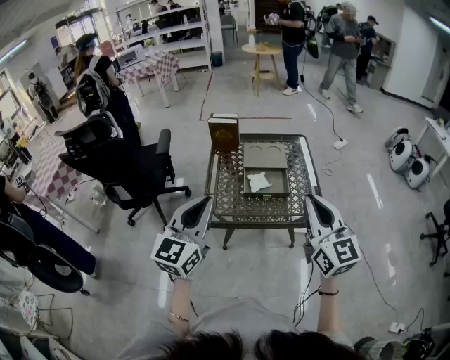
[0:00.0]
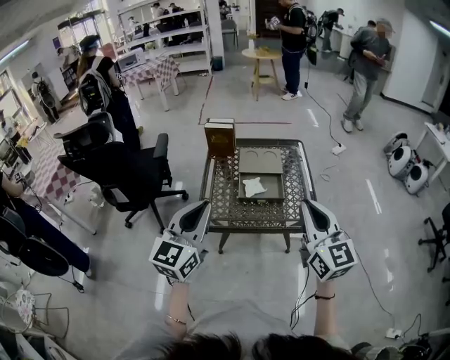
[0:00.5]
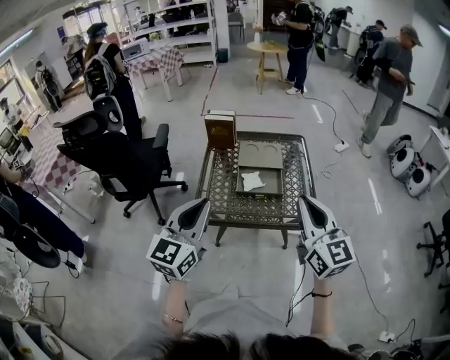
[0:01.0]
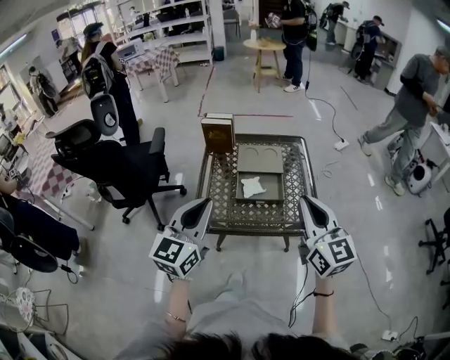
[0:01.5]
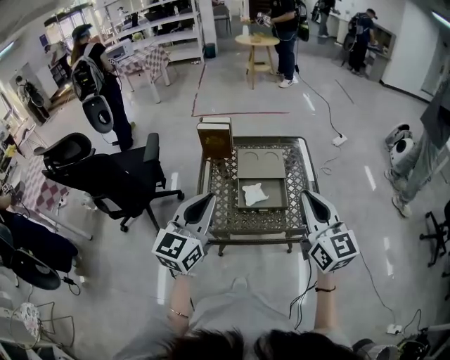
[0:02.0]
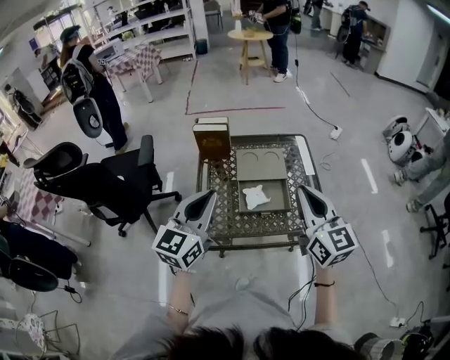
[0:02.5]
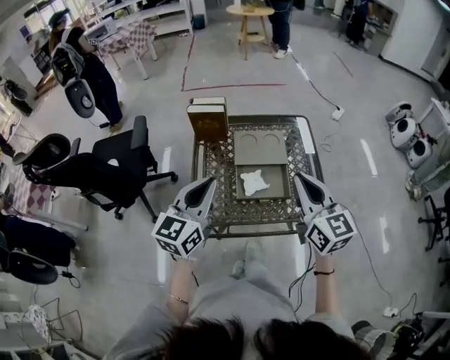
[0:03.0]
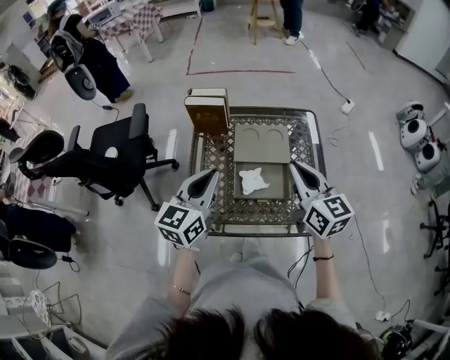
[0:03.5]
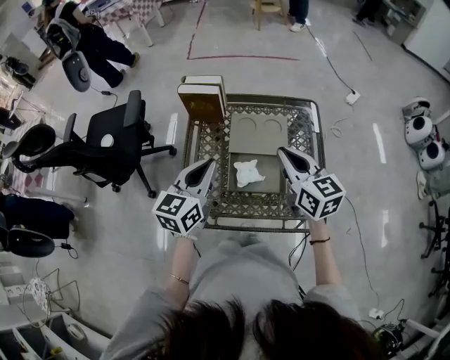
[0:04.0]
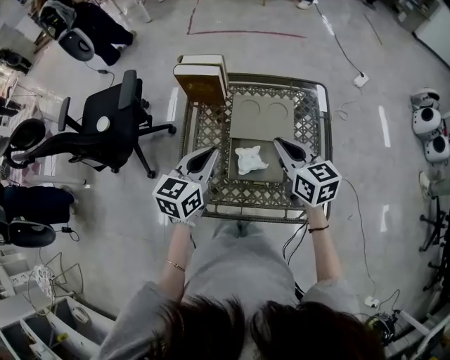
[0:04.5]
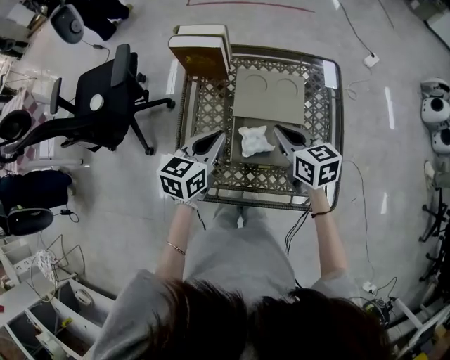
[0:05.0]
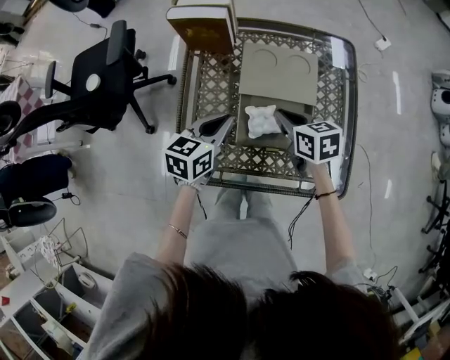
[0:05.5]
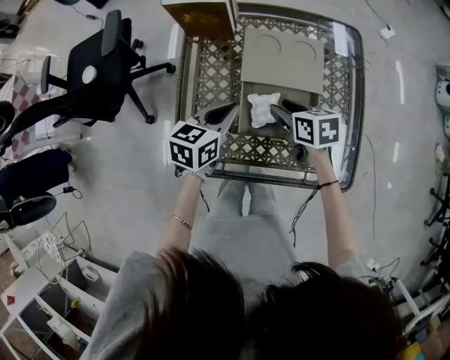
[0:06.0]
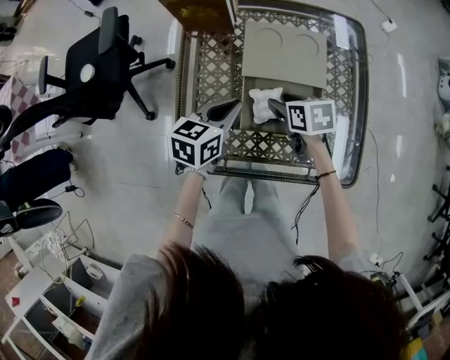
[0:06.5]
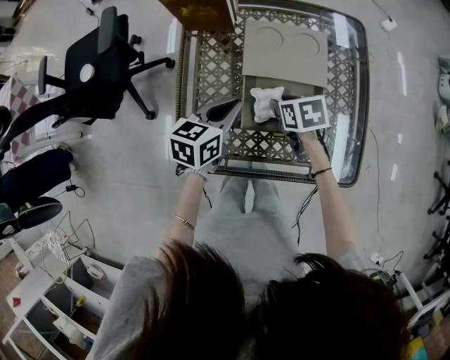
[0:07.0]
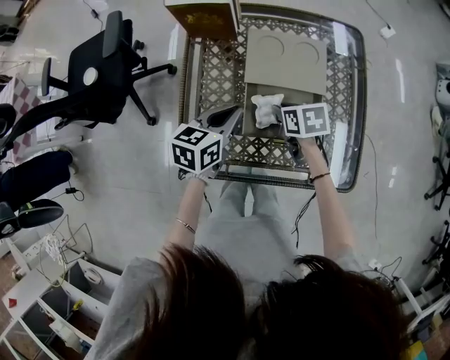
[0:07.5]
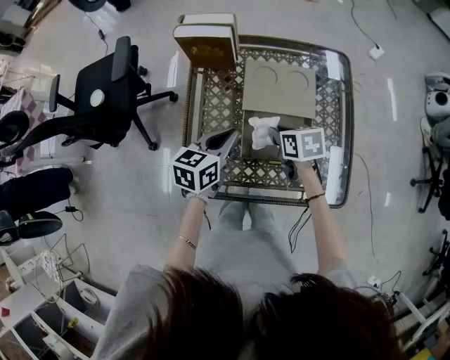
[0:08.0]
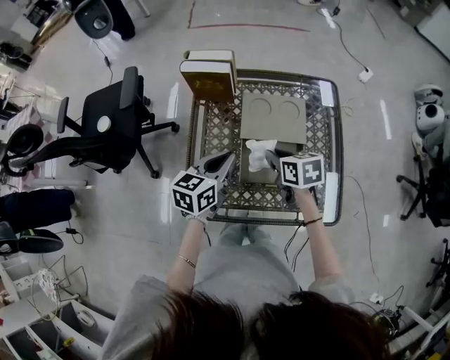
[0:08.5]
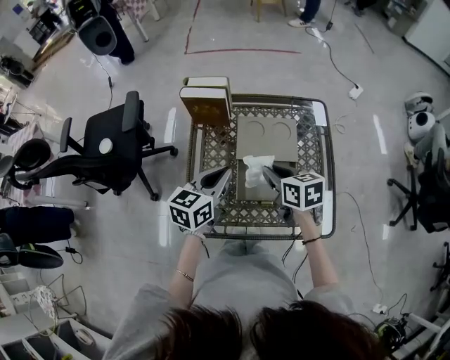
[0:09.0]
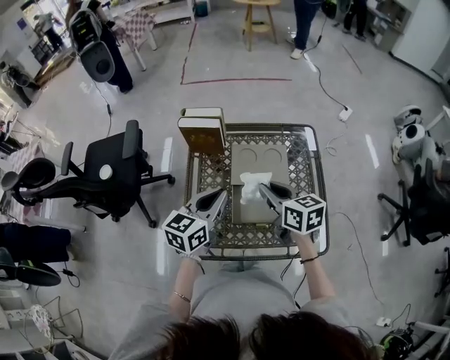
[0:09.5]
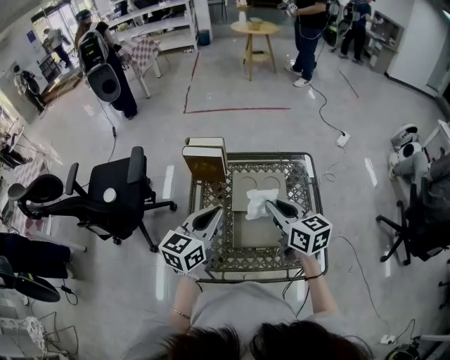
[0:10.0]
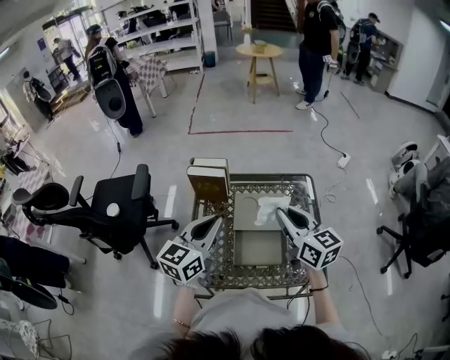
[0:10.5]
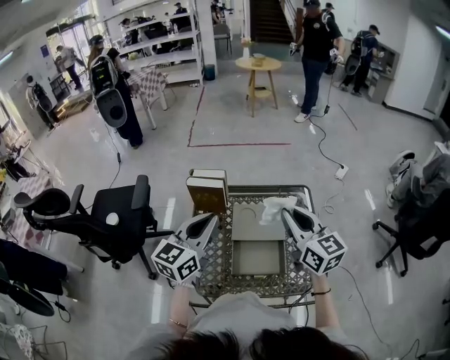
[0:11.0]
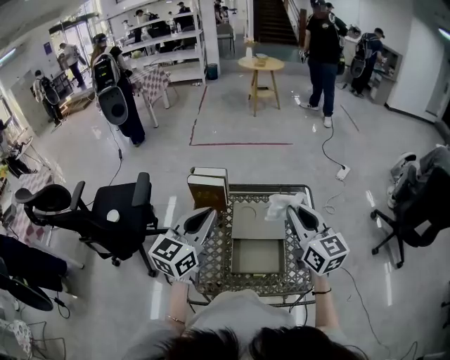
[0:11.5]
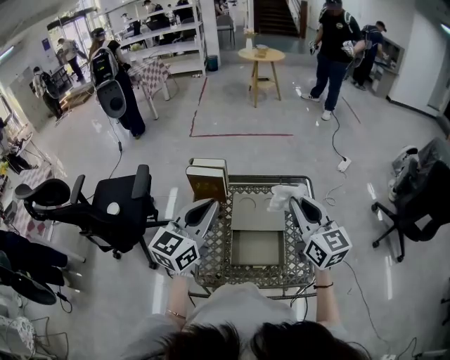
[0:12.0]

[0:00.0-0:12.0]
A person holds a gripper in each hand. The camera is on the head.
0:00.0 to 0:02.0: The grippers both shift forward by some 10 cm.
0:02.0 to 0:04.0: Both grippers travel together forward and downward, roughly 20 cm. The right gripper changes its angle by about 20 degrees.
0:04.0 to 0:06.0: The grippers both shift downward by about 20 cm. The right gripper tilts its fingers about 30 degrees downward, and opens up, while the left gripper rotates approximately 20 degrees.
0:06.0 to 0:08.0: The right gripper closes.
0:08.0 to 0:10.0: Both grippers move upward, about 20 cm. The left gripper turns by approximately 20 degrees; the right gripper points its fingers approximately 30 degrees further upward.
0:10.0 to 0:12.0: The right gripper heads upward and to the right, covering roughly 15 cm, and swivels some 30 degrees. The left gripper heads upward, covering roughly 10 cm.

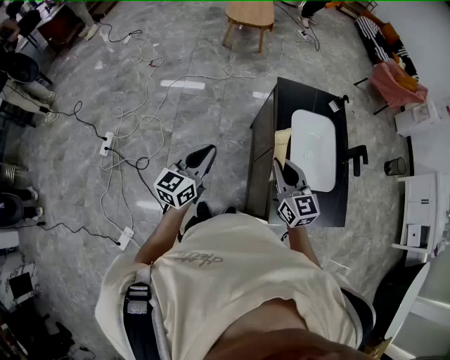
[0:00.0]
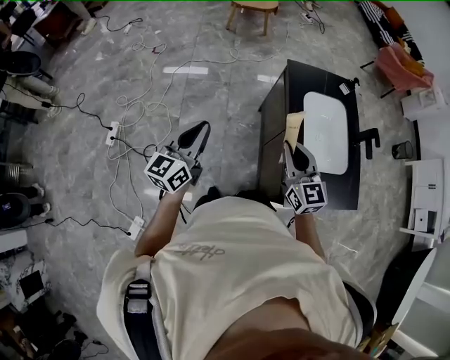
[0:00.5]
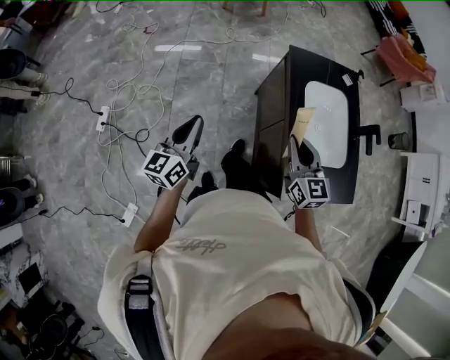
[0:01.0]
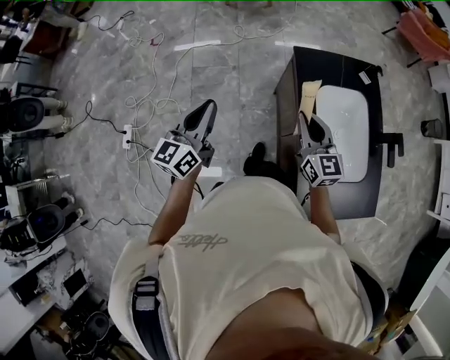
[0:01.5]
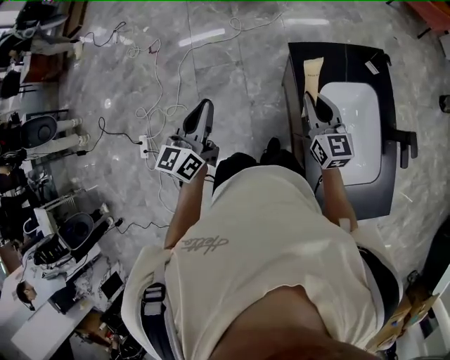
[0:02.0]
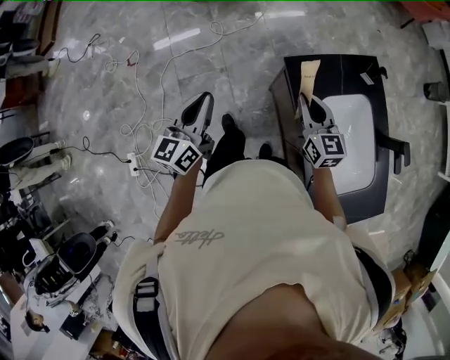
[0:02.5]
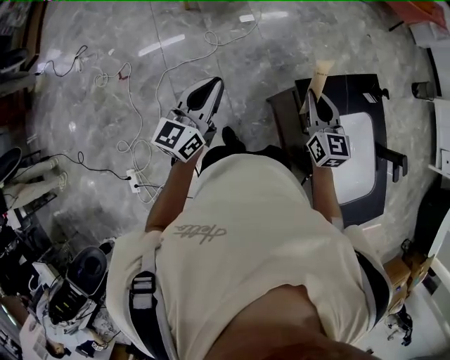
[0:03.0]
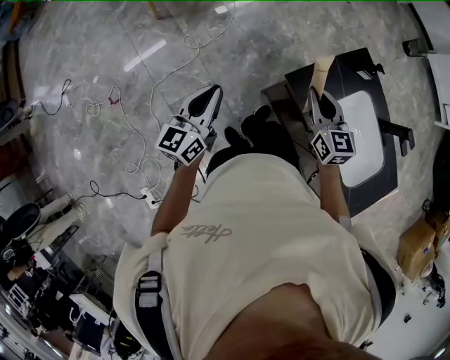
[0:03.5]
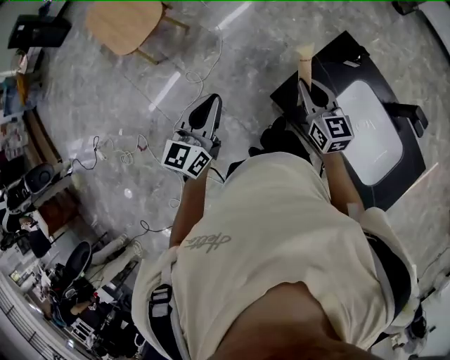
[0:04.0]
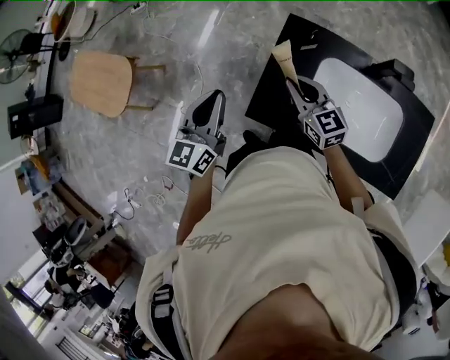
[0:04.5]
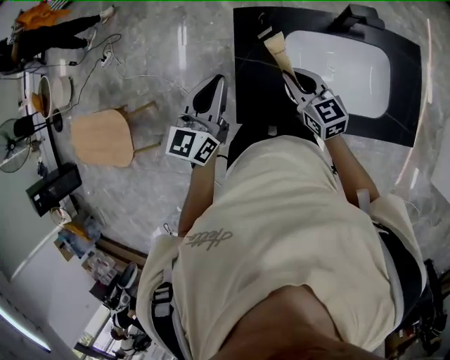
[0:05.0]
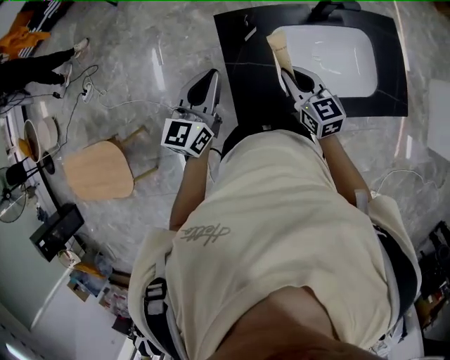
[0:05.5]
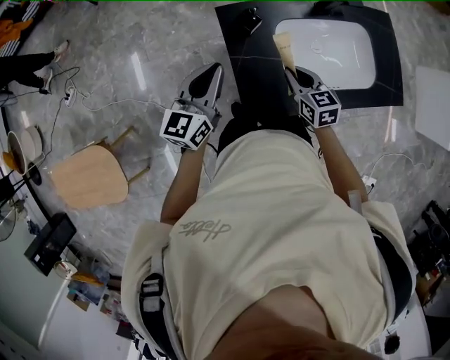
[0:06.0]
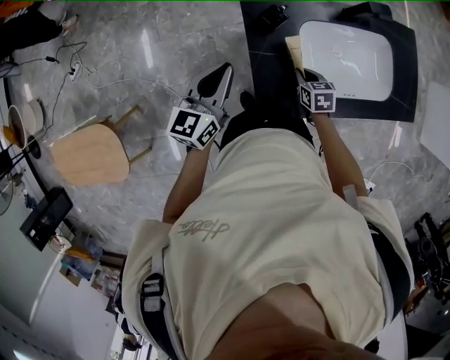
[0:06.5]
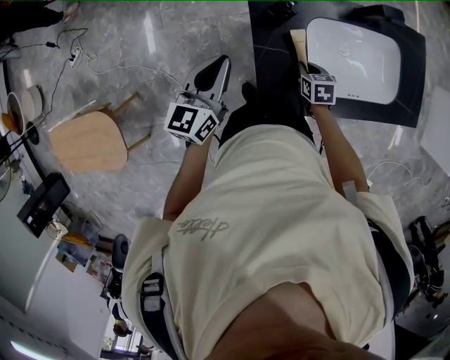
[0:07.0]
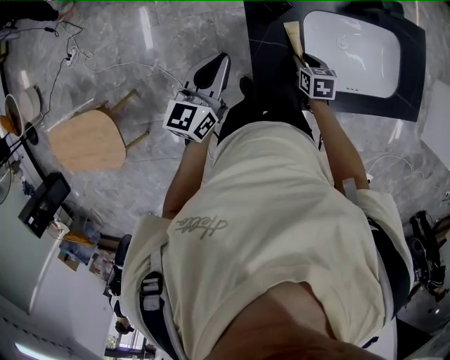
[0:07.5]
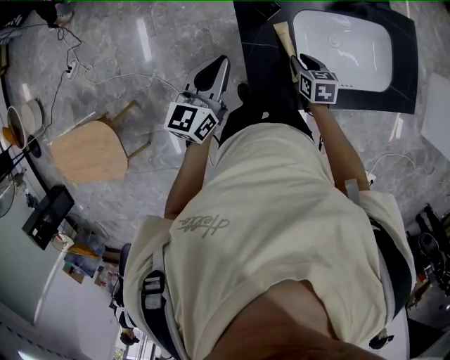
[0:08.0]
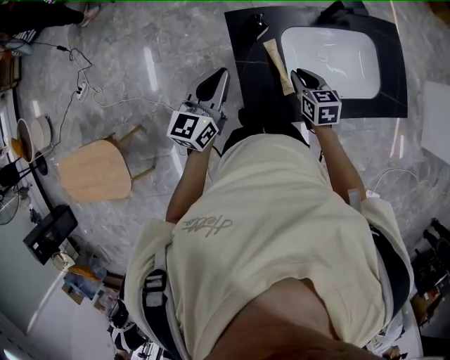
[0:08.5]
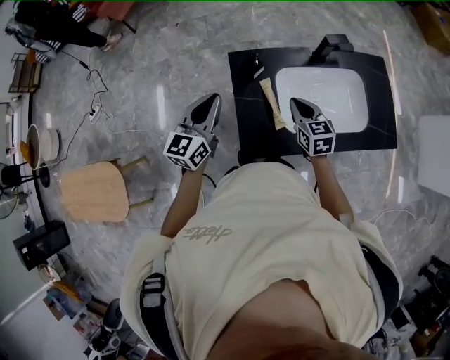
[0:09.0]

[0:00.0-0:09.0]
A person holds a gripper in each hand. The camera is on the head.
0:00.0 to 0:02.0: Both grippers move forward, about 35 cm.
0:02.0 to 0:04.5: The right gripper ends up some 30 cm from where it was, and changes its angle by about 40 degrees. Meanwhile the left gripper changes place by roughly 50 cm, and swivels some 60 degrees.
0:04.5 to 0:07.0: The right gripper goes approximately 25 cm downward, and angles its fingers downward, by about 40 degrees, while the left gripper shifts by some 20 cm, and rotates roughly 30 degrees.
0:07.0 to 0:09.0: The right gripper moves upward, approximately 20 cm, changes its angle by roughly 30 degrees, and opens, then closes once more, while the left gripper shifts about 10 cm upward and to the right.

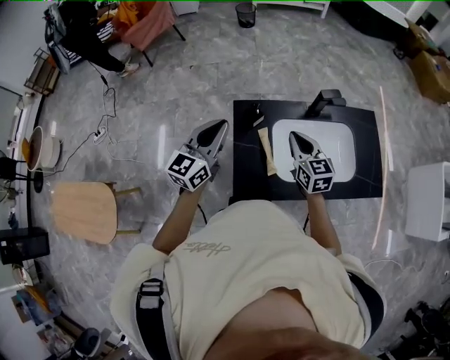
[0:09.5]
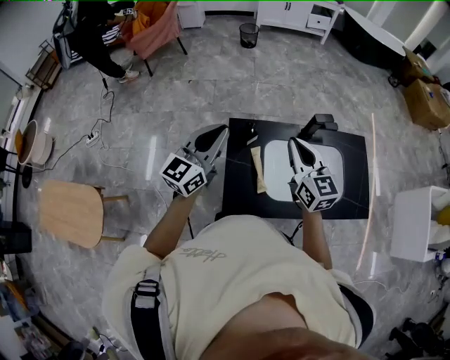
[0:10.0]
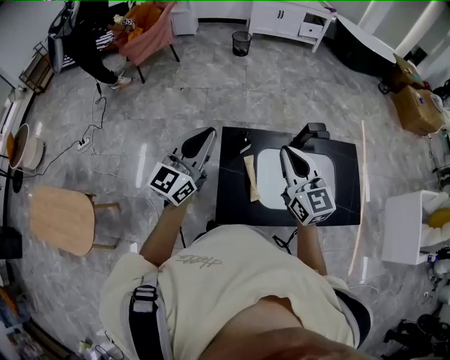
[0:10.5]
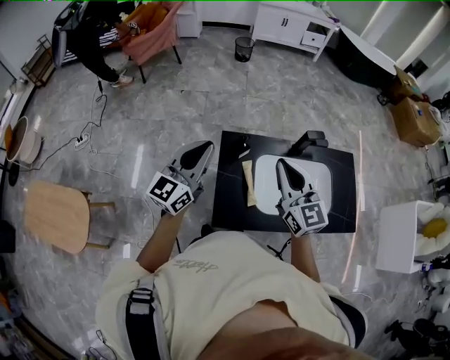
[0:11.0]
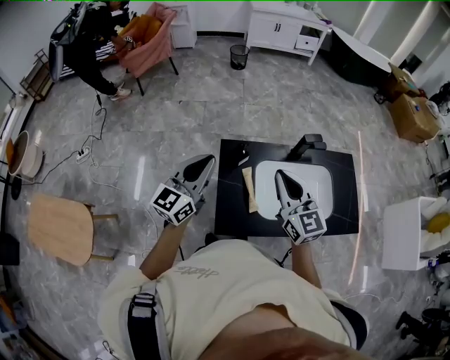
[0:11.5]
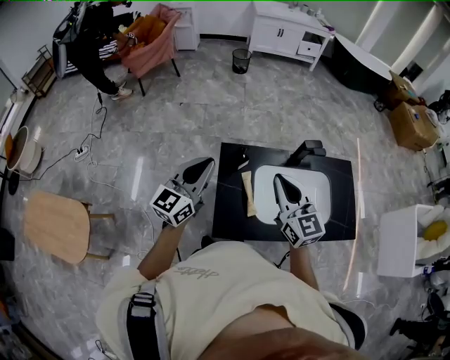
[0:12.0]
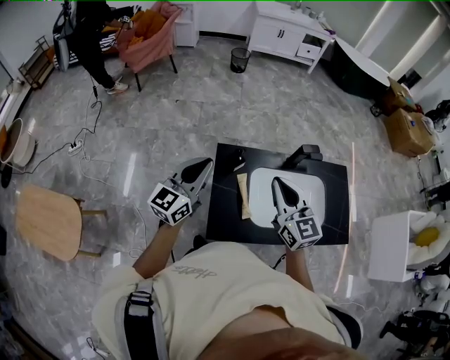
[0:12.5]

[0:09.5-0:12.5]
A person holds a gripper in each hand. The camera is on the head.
0:09.5 to 0:11.0: The left gripper moves upward, roughly 5 cm, while the right gripper moves upward, some 15 cm, and turns by roughly 20 degrees.
0:11.0 to 0:12.5: The grippers stay close to where they were, moving slightly.

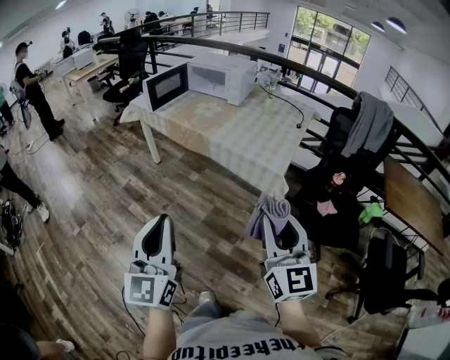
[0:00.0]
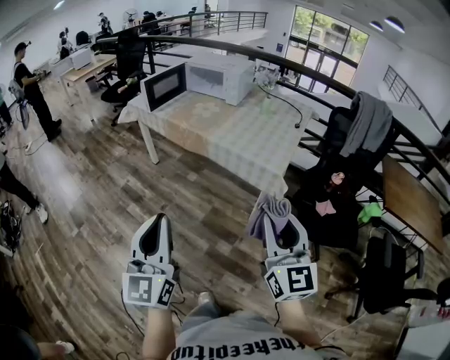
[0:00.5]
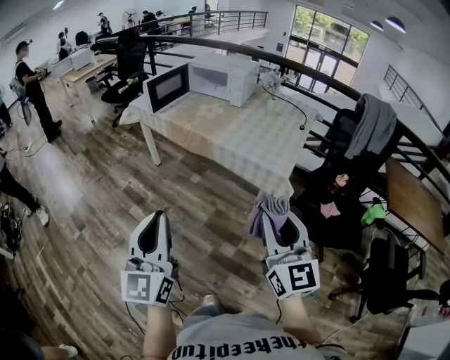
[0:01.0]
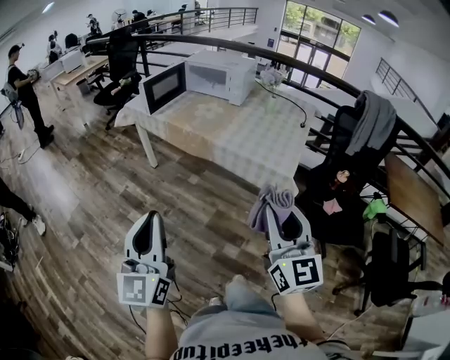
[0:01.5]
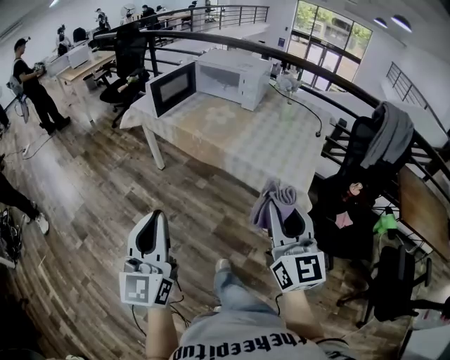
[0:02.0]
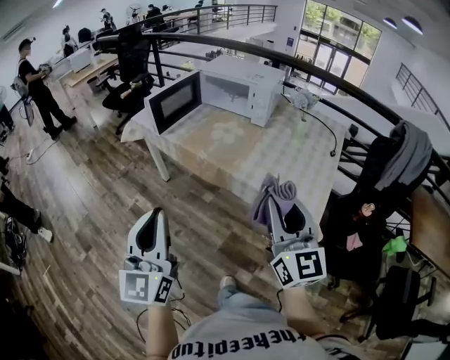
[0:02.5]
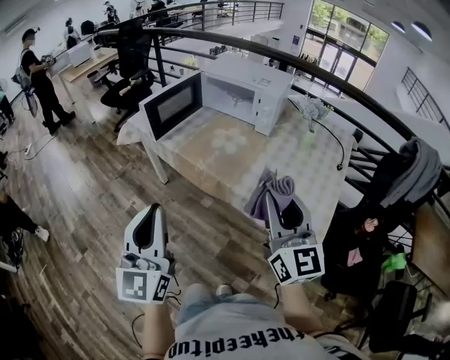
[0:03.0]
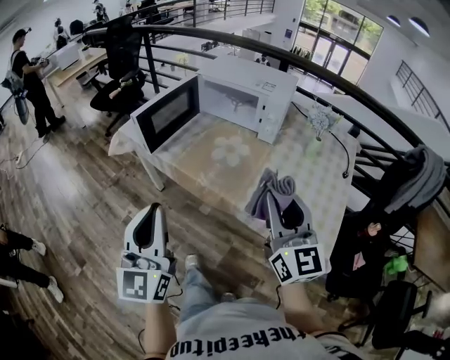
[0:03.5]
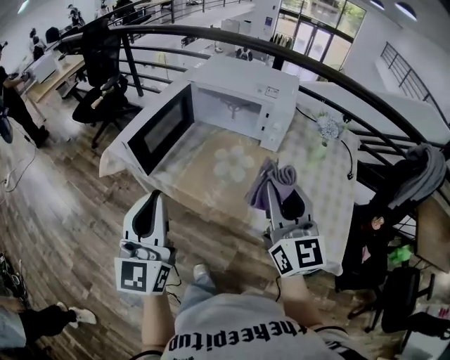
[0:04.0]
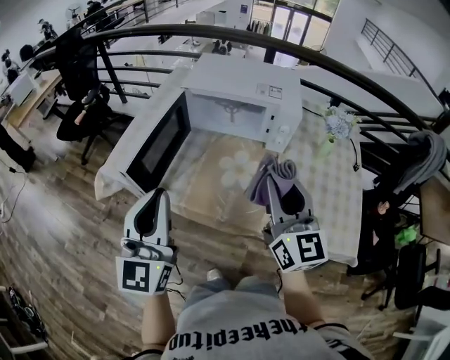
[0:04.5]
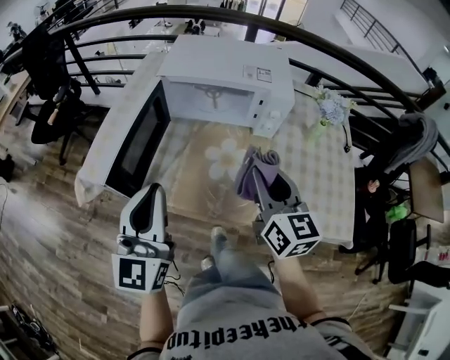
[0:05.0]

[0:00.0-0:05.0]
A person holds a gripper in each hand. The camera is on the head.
0:00.0 to 0:02.5: The two grippers go some 35 cm forward.
0:02.5 to 0:05.0: The two grippers travel together, forward, roughly 50 cm. The right gripper swivels about 30 degrees. The left gripper swivels approximately 20 degrees.
